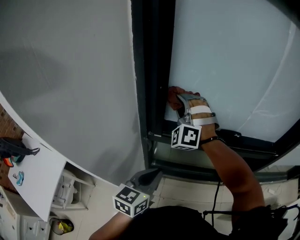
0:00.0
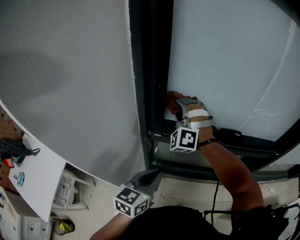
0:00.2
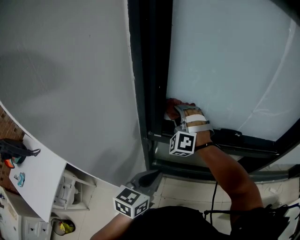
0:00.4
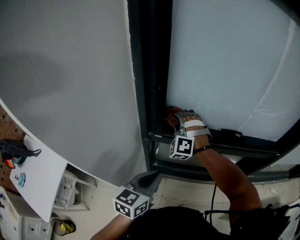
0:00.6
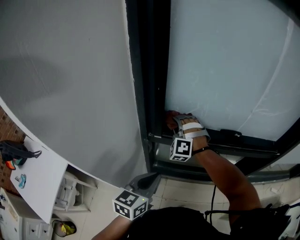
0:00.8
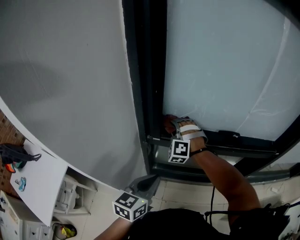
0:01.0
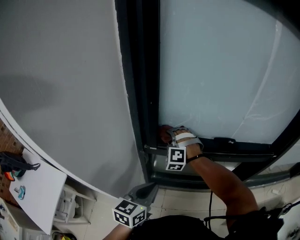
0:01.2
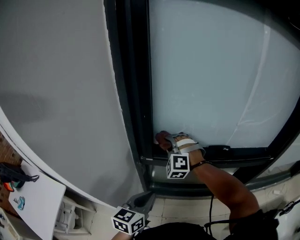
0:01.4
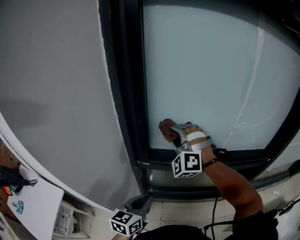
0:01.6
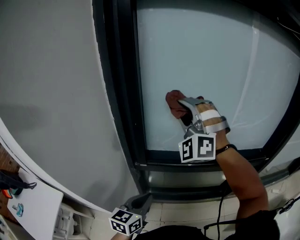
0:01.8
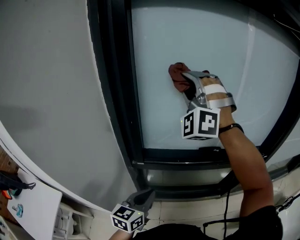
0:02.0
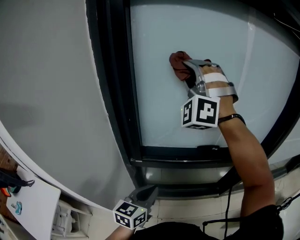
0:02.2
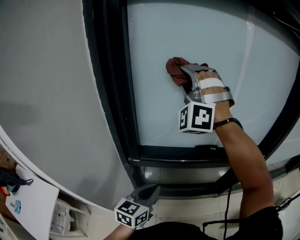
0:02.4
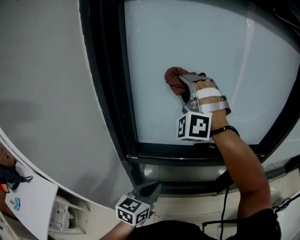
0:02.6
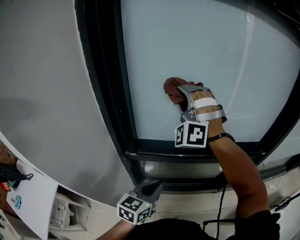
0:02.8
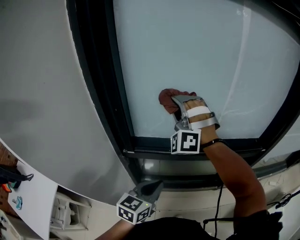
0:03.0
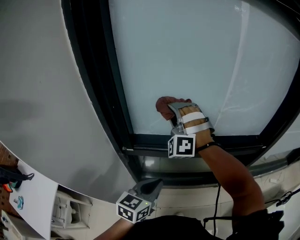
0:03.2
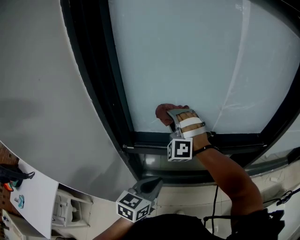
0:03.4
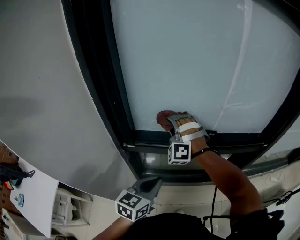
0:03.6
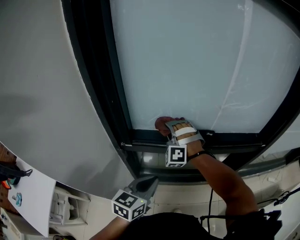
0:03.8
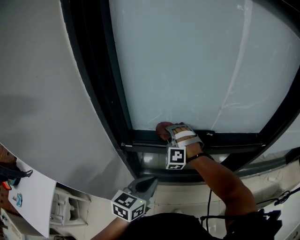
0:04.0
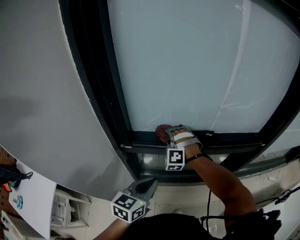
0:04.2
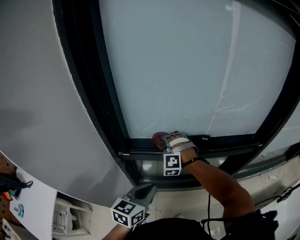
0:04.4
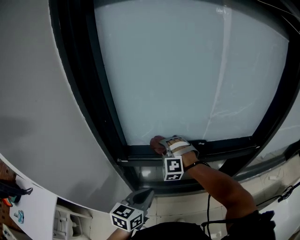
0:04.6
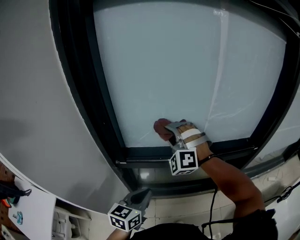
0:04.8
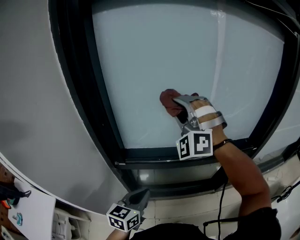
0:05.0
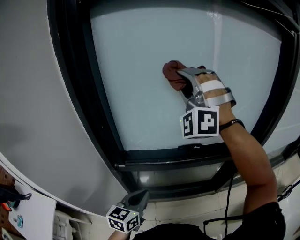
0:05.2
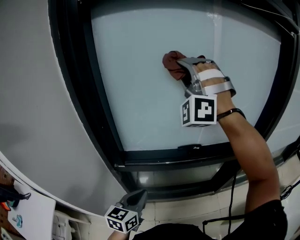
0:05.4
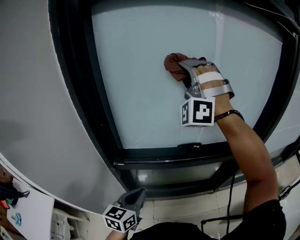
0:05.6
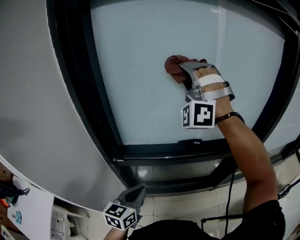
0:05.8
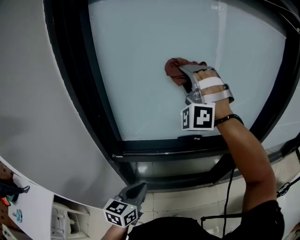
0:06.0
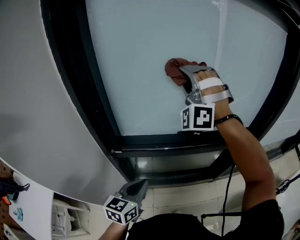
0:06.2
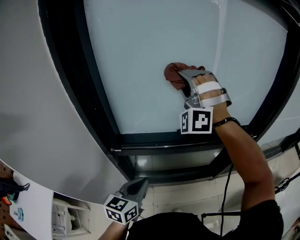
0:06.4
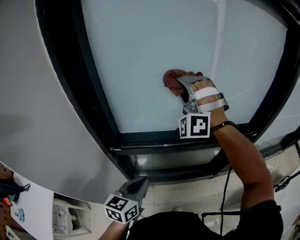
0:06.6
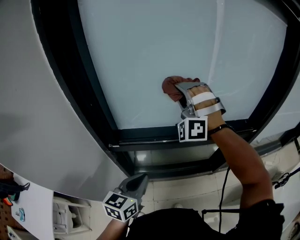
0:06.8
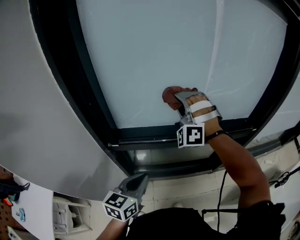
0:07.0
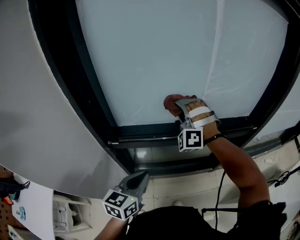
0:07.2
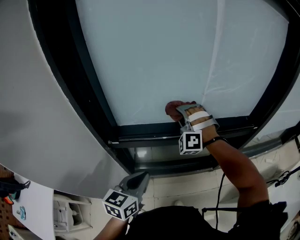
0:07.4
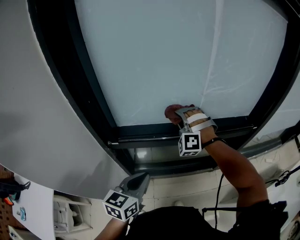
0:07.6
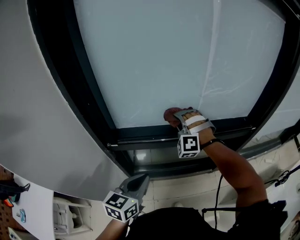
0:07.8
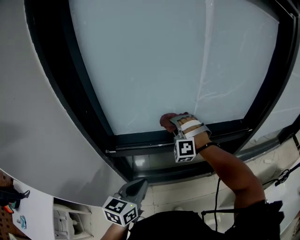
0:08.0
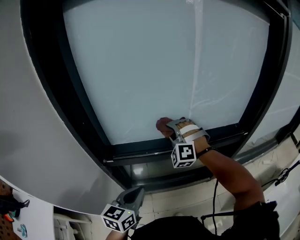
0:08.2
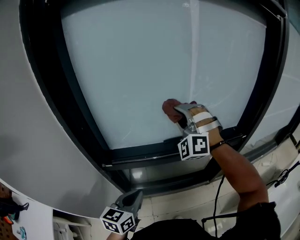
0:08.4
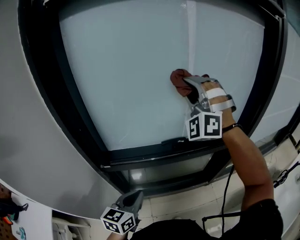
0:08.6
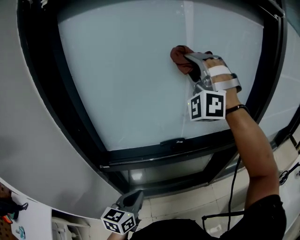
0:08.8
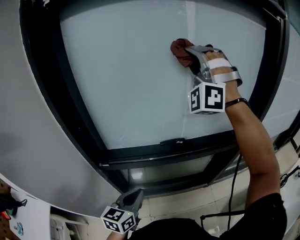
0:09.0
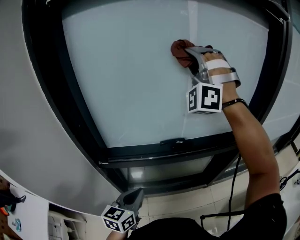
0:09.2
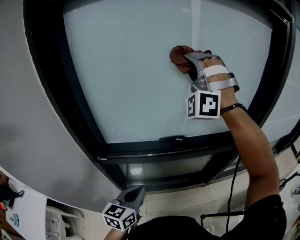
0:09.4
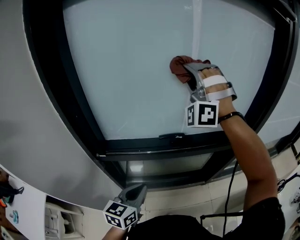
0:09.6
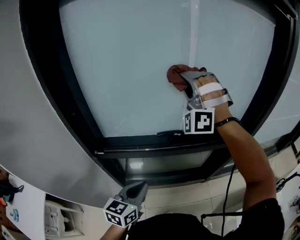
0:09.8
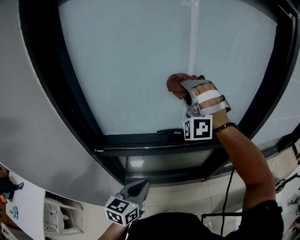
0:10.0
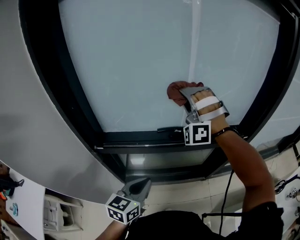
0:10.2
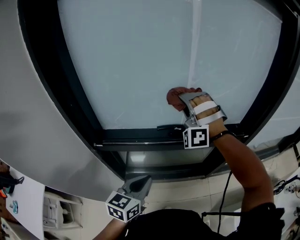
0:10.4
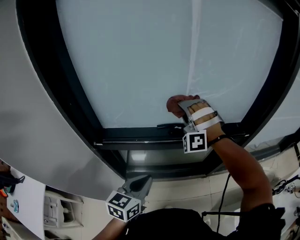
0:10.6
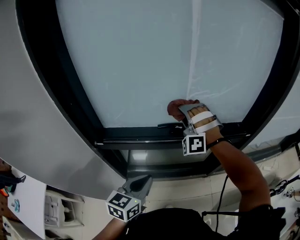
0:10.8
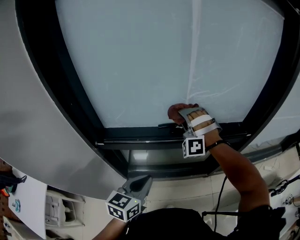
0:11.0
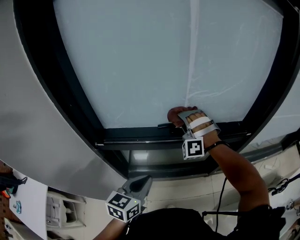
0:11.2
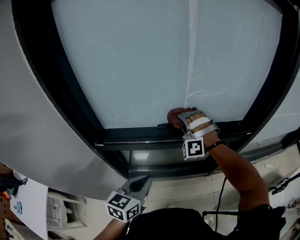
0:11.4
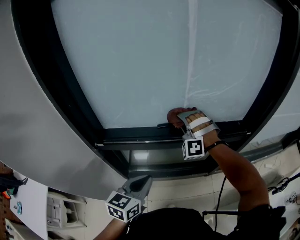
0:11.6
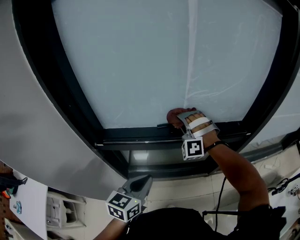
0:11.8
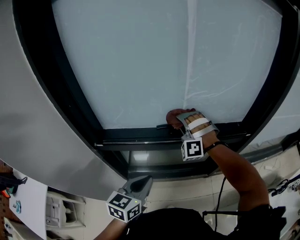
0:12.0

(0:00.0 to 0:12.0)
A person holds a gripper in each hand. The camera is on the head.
0:01.6 - 0:03.0: The left gripper changes place by about 10 cm.
0:09.0 - 0:10.4: The left gripper shifts by approximately 5 cm.

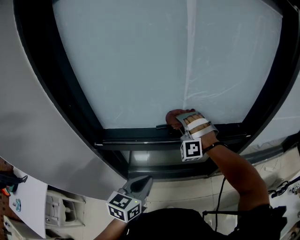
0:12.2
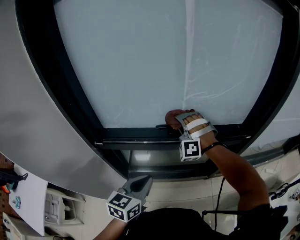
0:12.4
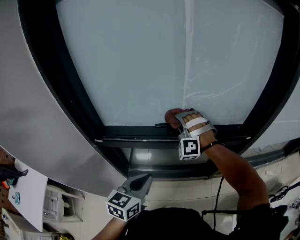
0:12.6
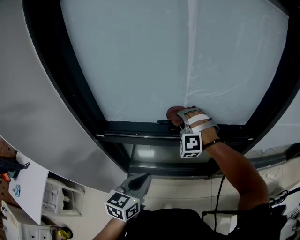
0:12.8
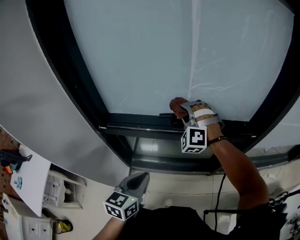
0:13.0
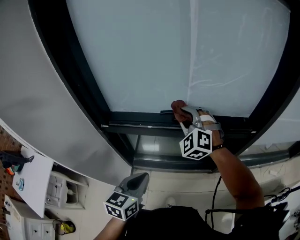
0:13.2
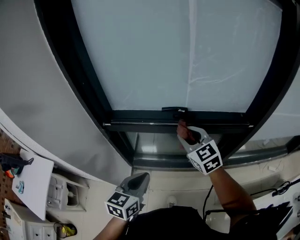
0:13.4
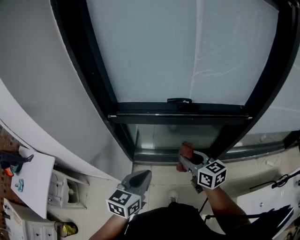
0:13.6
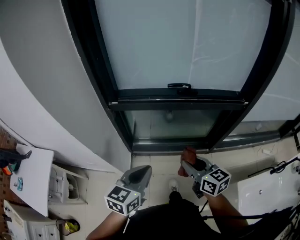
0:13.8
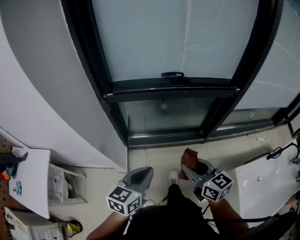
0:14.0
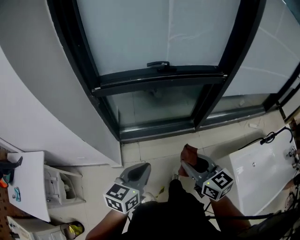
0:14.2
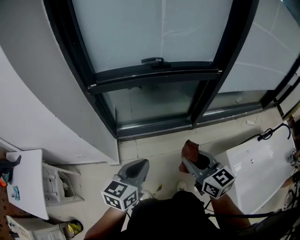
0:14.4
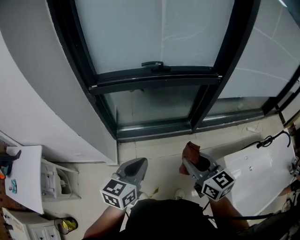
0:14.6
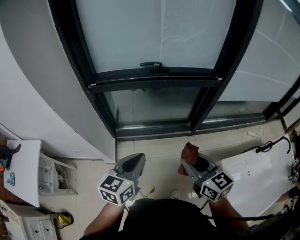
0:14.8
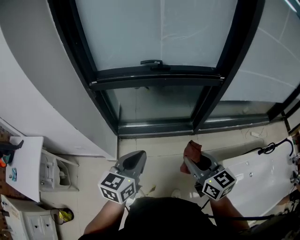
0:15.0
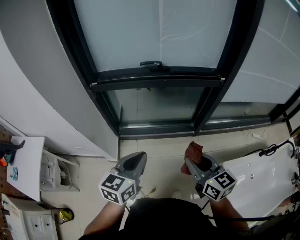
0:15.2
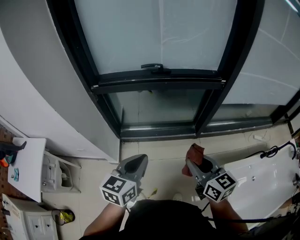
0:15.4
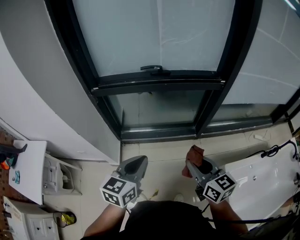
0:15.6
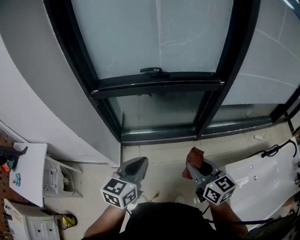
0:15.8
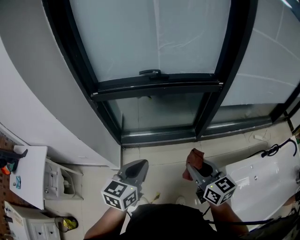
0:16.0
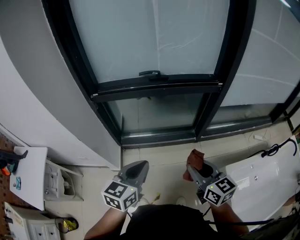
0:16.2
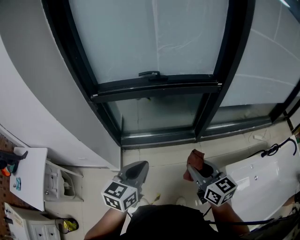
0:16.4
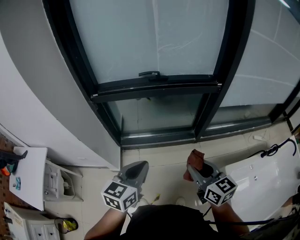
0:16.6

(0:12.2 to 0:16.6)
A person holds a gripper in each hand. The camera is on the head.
0:12.2 - 0:13.6: The left gripper ends up approximately 15 cm from where it was.
0:13.6 - 0:15.2: The left gripper shifts by approximately 15 cm.

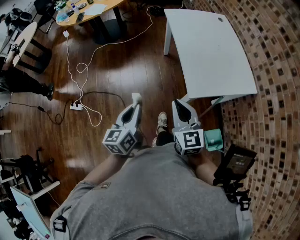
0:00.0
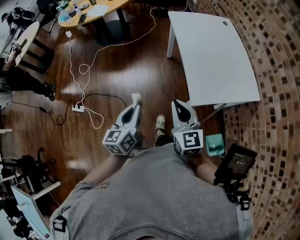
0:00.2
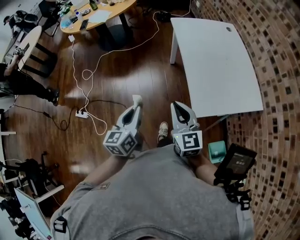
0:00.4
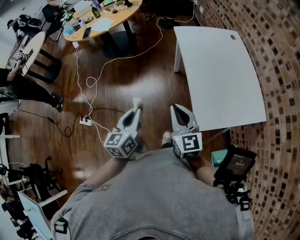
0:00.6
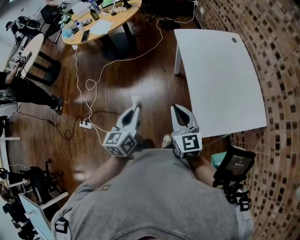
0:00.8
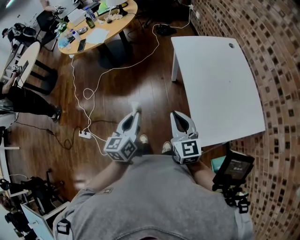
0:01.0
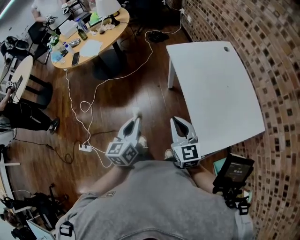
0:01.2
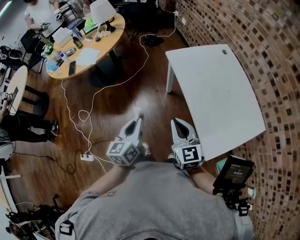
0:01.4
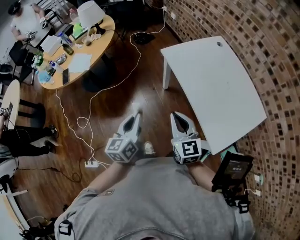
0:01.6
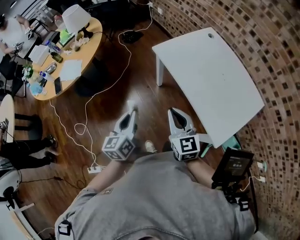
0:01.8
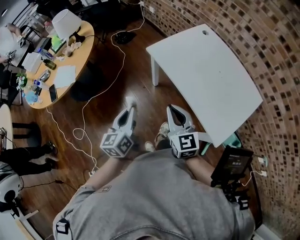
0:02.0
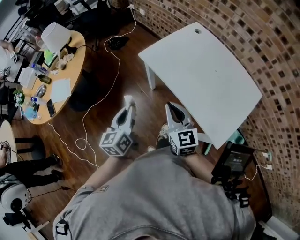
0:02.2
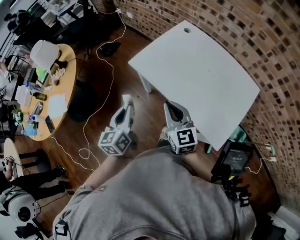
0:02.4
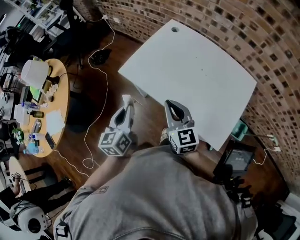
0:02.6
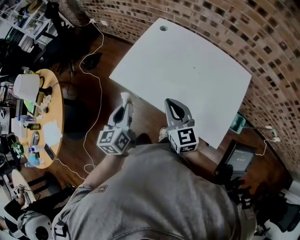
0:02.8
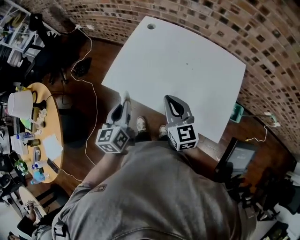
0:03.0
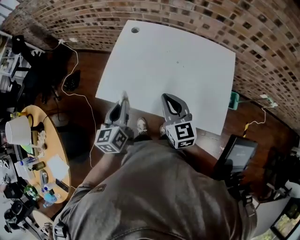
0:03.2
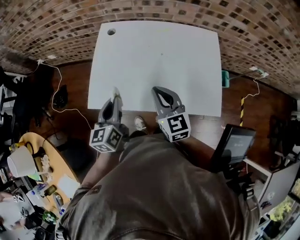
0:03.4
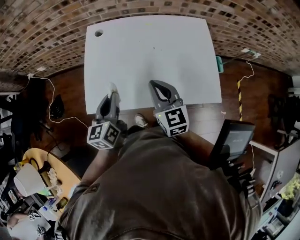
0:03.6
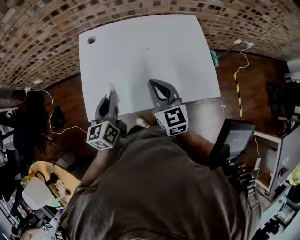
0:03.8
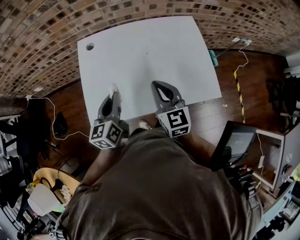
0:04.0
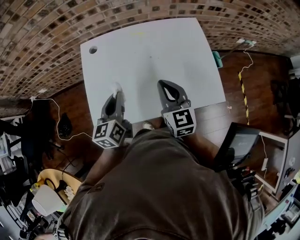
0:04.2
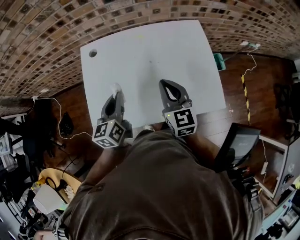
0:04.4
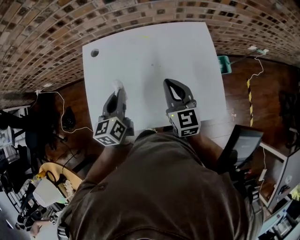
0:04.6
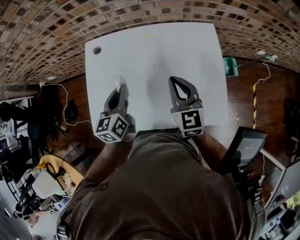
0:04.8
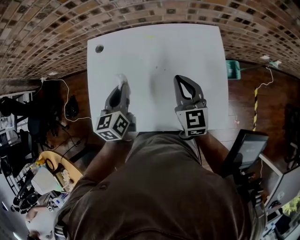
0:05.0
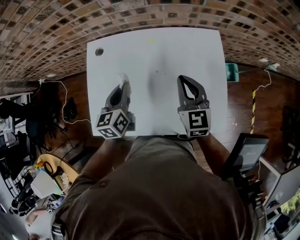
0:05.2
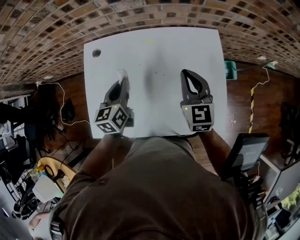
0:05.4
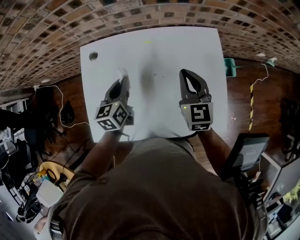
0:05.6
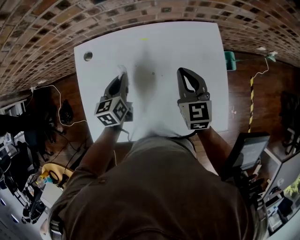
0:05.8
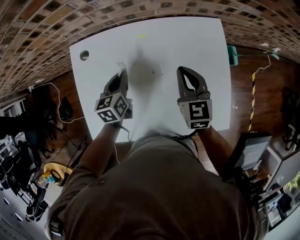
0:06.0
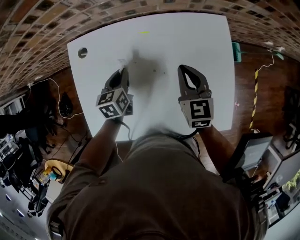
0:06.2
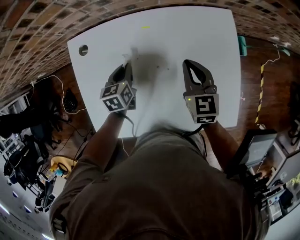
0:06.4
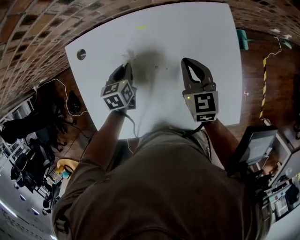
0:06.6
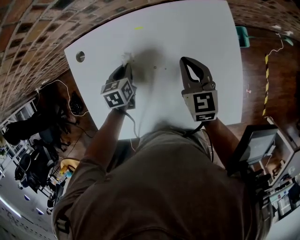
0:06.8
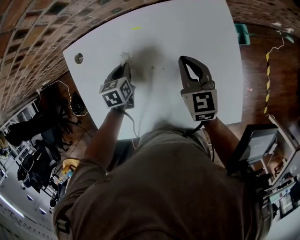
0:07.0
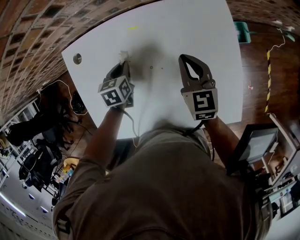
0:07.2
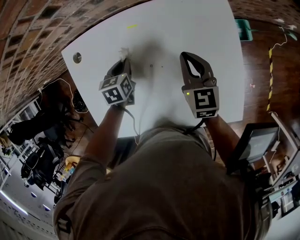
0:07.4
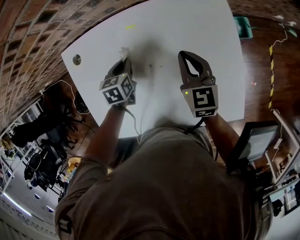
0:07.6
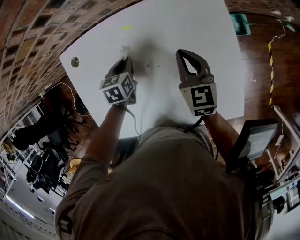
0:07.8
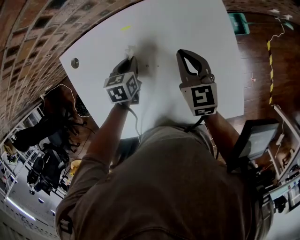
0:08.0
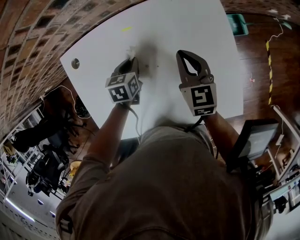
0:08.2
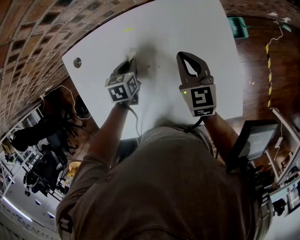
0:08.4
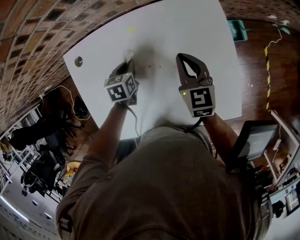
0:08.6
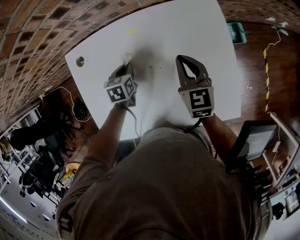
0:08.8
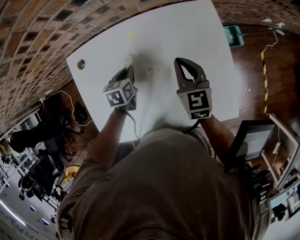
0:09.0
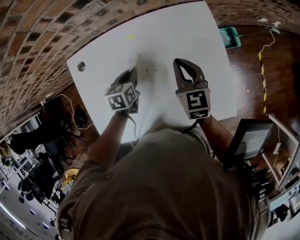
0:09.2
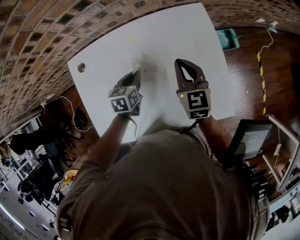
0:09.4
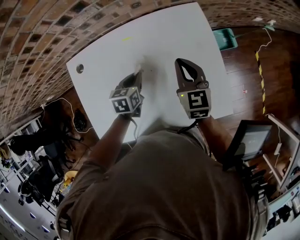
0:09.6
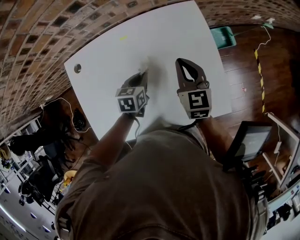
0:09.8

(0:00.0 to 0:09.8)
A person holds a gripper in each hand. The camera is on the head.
0:00.0 - 0:01.4: The grippers both shift forward by about 30 cm.
0:01.4 - 0:02.8: The right gripper ends up some 20 cm from where it was, and swivels roughly 40 degrees, while the left gripper ends up some 30 cm from where it was, and rotates about 40 degrees.
0:02.8 - 0:04.2: The right gripper ends up some 10 cm from where it was, and rotates some 40 degrees, while the left gripper shifts by approximately 20 cm, and rotates about 40 degrees.
0:04.2 - 0:05.6: The left gripper shifts roughly 15 cm forward, while the right gripper shifts about 20 cm forward and to the right.
0:05.6 - 0:07.0: The grippers both shift downward by approximately 15 cm. The left gripper swivels about 30 degrees.
0:07.0 - 0:08.4: The left gripper goes roughly 5 cm to the right.
0:08.4 - 0:09.8: The left gripper goes roughly 10 cm to the right and backward. The right gripper changes place by some 5 cm.
